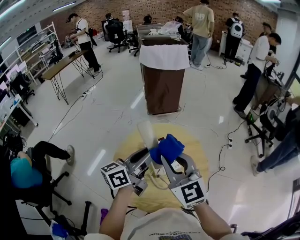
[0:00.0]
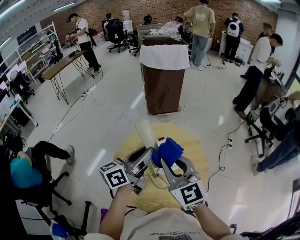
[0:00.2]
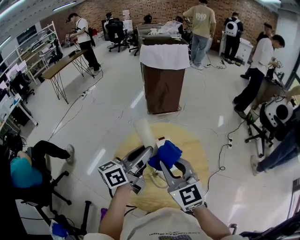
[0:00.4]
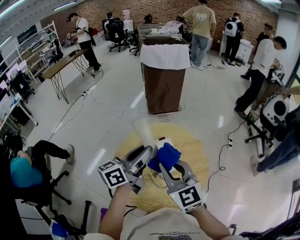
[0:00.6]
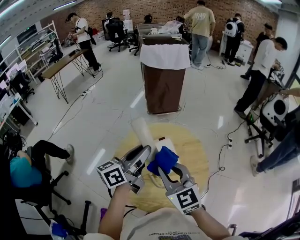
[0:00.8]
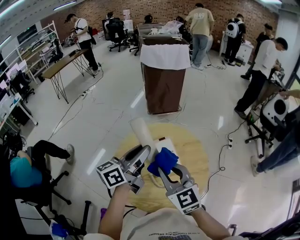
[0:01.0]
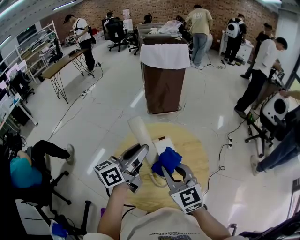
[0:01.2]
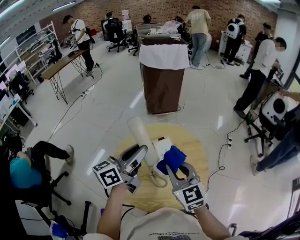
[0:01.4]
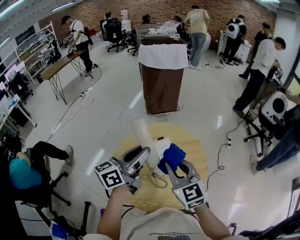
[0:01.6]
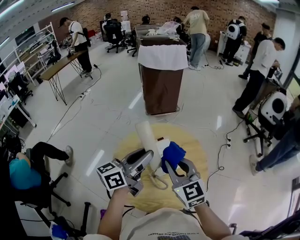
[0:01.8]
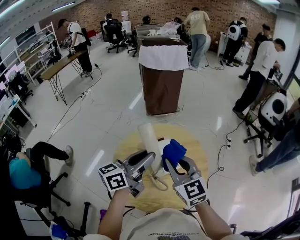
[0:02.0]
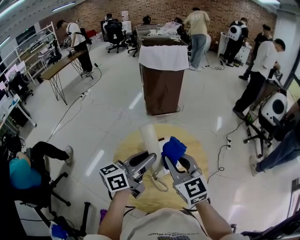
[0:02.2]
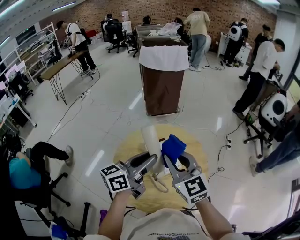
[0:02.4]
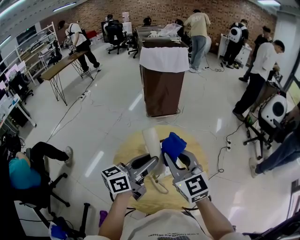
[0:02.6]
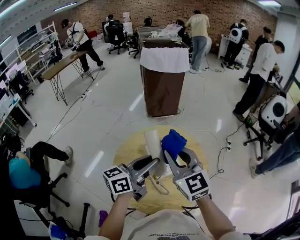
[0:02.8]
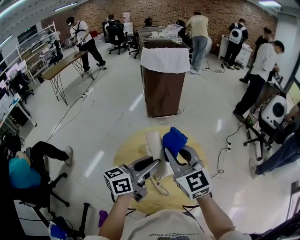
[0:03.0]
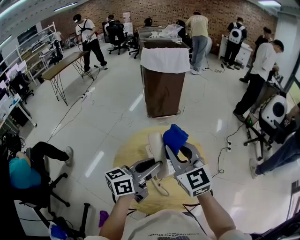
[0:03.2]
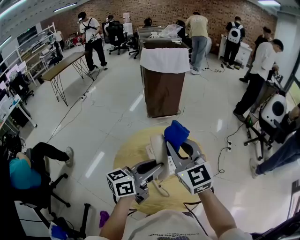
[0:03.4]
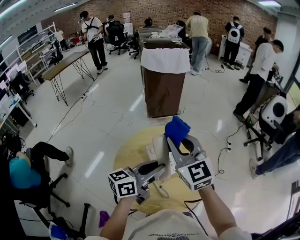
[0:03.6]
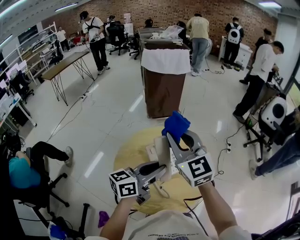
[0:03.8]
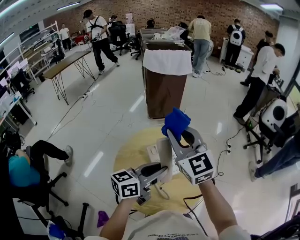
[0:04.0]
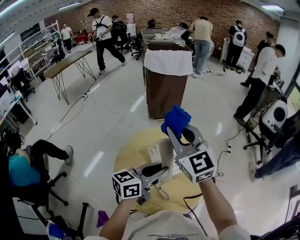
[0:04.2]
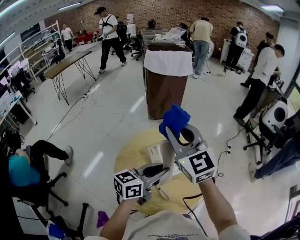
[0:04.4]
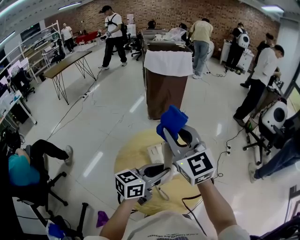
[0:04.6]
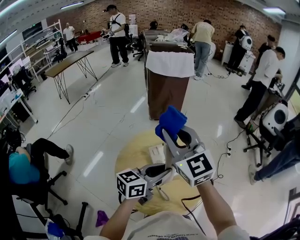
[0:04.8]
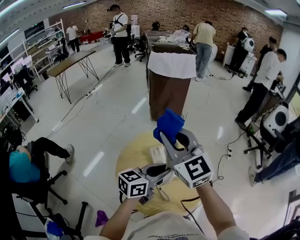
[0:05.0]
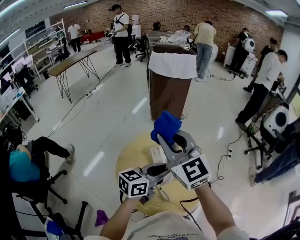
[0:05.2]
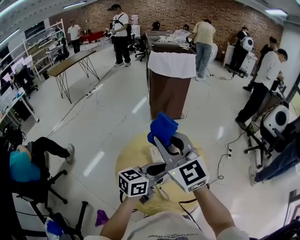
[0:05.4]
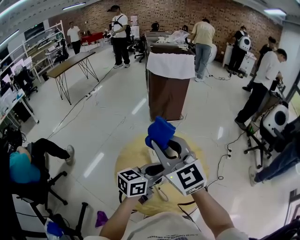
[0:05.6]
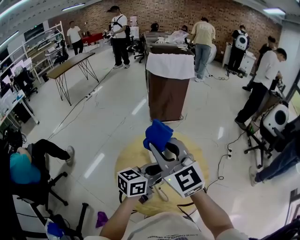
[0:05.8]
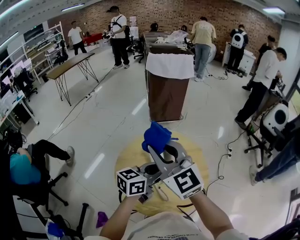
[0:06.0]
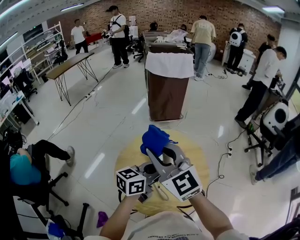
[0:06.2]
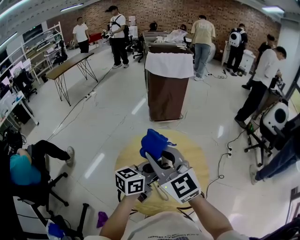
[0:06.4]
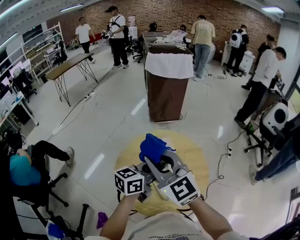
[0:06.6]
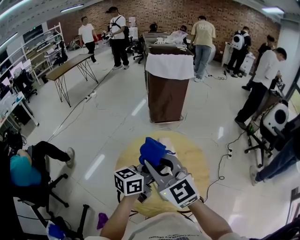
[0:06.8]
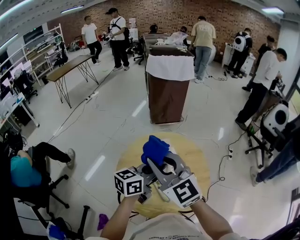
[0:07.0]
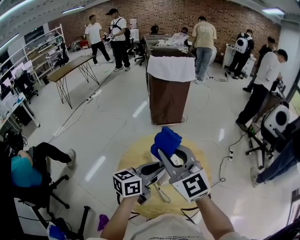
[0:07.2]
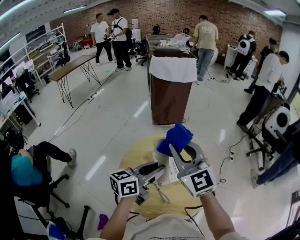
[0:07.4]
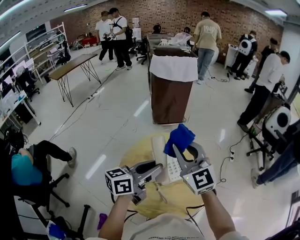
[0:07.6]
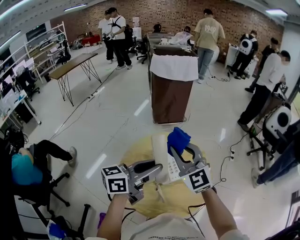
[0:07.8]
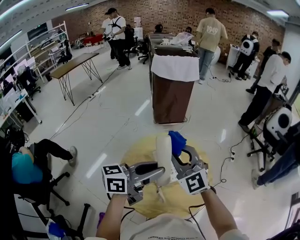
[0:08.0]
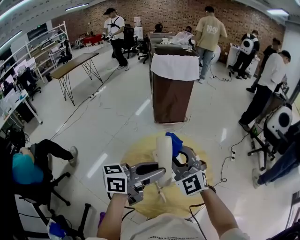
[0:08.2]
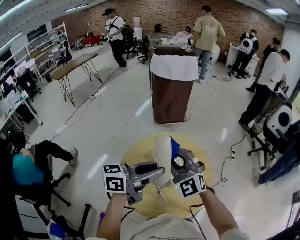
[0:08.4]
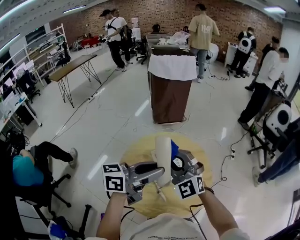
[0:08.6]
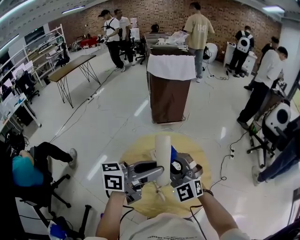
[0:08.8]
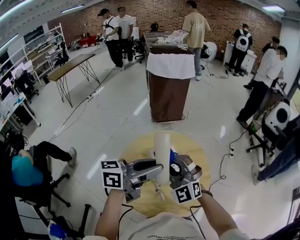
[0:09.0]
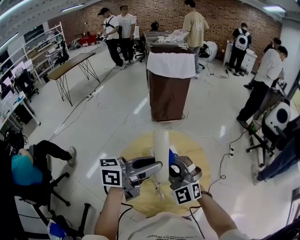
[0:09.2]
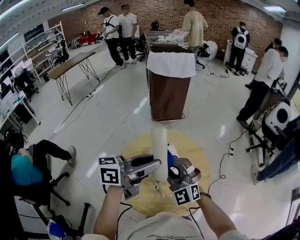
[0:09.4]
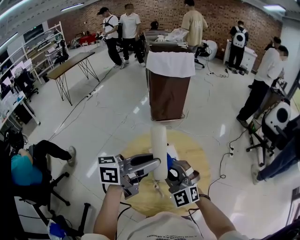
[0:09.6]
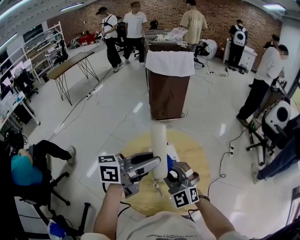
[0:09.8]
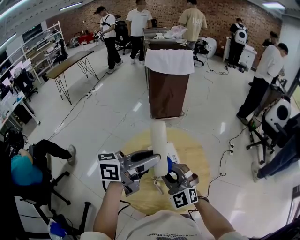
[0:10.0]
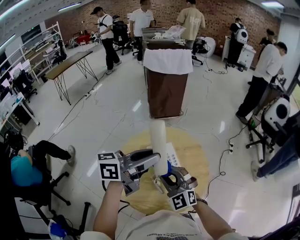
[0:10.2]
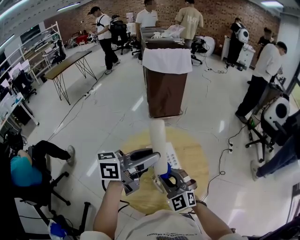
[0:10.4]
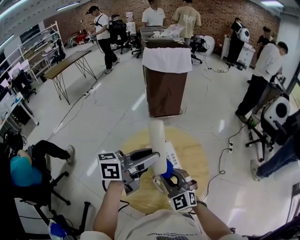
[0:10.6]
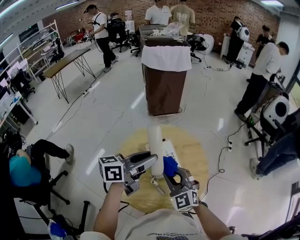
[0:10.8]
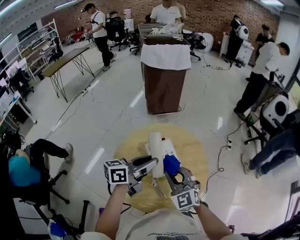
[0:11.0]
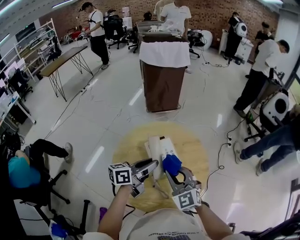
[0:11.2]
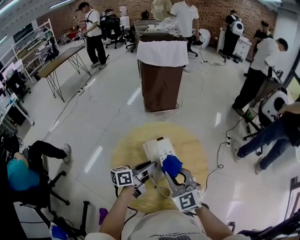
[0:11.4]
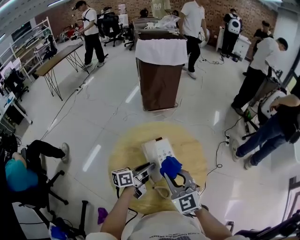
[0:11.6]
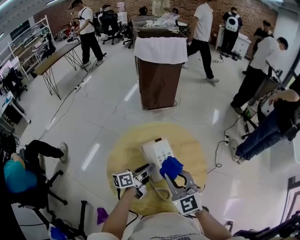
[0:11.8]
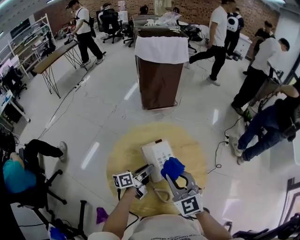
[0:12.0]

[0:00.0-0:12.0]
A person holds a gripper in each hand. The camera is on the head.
0:00.0 to 0:01.6: The right gripper heads downward, covering roughly 5 cm.
0:01.6 to 0:03.0: The right gripper is displaced upward by roughly 5 cm.
0:03.0 to 0:04.4: The right gripper shifts roughly 10 cm upward.
0:04.4 to 0:06.0: The right gripper travels backward by roughly 5 cm.
0:06.0 to 0:07.6: The right gripper goes approximately 5 cm to the right. Meanwhile the left gripper moves to the left, roughly 5 cm.
0:07.6 to 0:09.0: The right gripper moves downward and backward, approximately 10 cm, and changes its angle by about 30 degrees, while the left gripper changes place by roughly 5 cm.
0:09.0 to 0:10.4: The right gripper goes roughly 10 cm downward.
0:10.4 to 0:12.0: The right gripper shifts by roughly 5 cm, and rotates approximately 20 degrees; the left gripper goes roughly 30 cm downward, and turns by roughly 30 degrees.

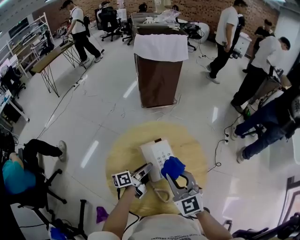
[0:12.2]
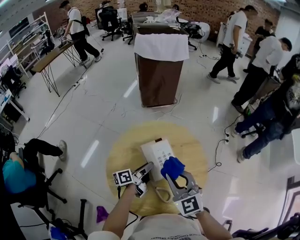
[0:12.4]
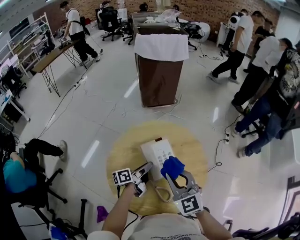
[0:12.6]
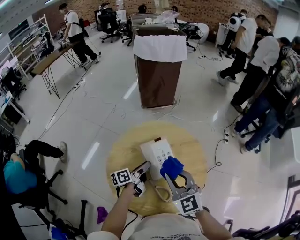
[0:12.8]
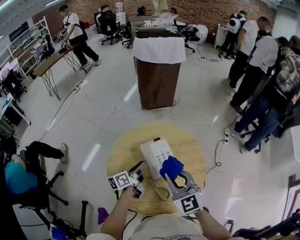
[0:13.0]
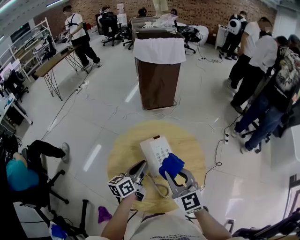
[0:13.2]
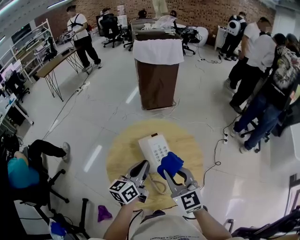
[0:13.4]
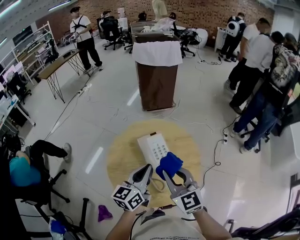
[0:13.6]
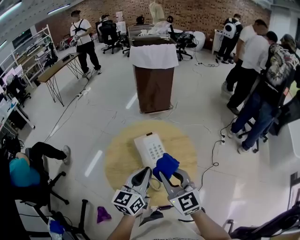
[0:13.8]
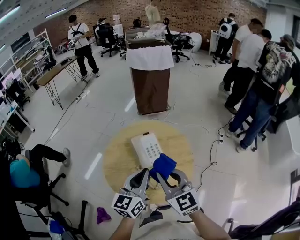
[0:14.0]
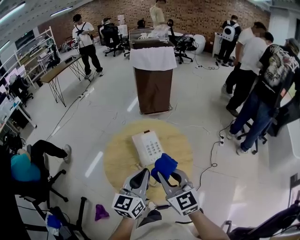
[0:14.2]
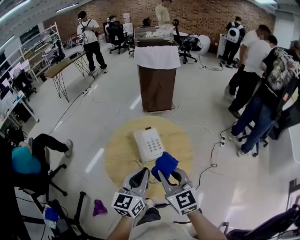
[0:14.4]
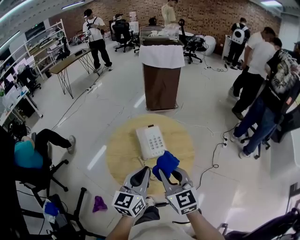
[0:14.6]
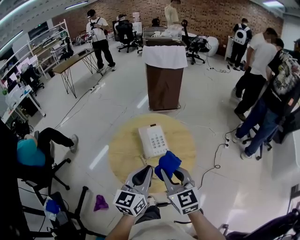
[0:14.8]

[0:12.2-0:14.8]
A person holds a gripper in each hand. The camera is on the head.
0:12.2 to 0:13.4: The right gripper moves approximately 5 cm, while the left gripper shifts some 15 cm upward and backward, and turns by approximately 40 degrees.
0:13.4 to 0:14.8: The left gripper moves backward and upward, about 15 cm, and changes its angle by about 20 degrees, while the right gripper heads backward, covering about 10 cm.

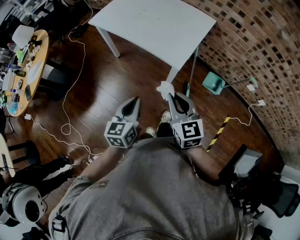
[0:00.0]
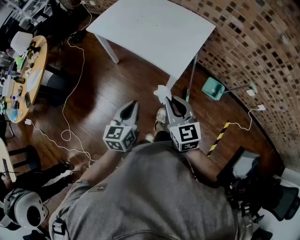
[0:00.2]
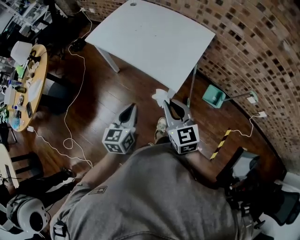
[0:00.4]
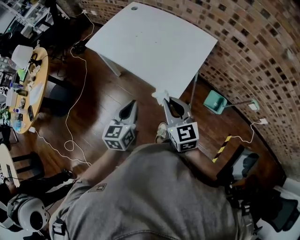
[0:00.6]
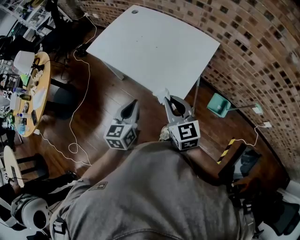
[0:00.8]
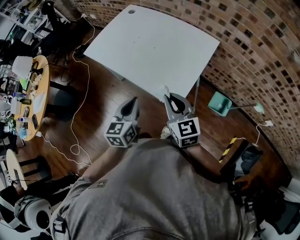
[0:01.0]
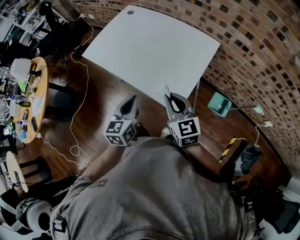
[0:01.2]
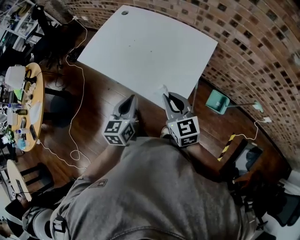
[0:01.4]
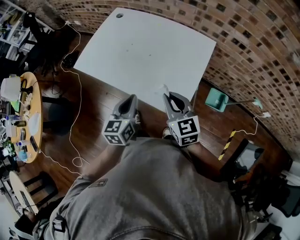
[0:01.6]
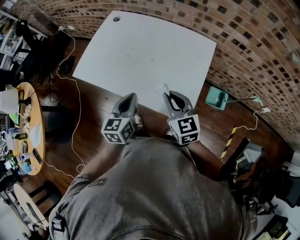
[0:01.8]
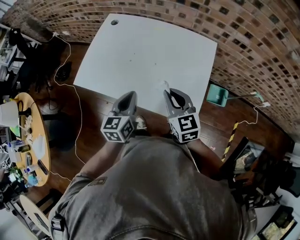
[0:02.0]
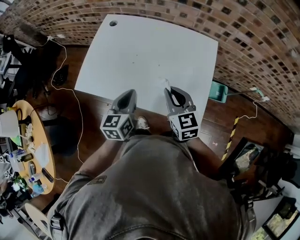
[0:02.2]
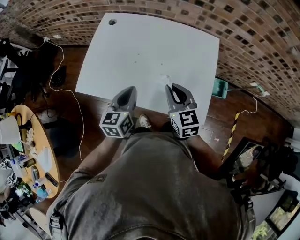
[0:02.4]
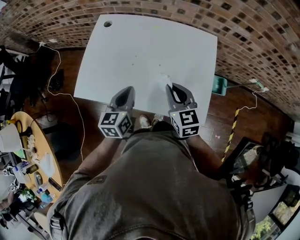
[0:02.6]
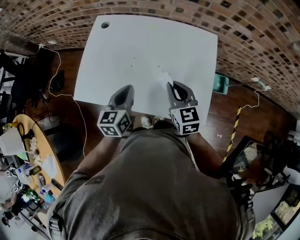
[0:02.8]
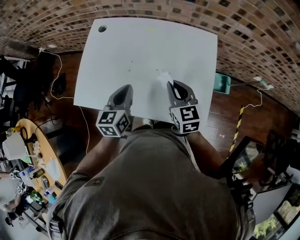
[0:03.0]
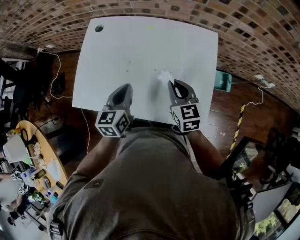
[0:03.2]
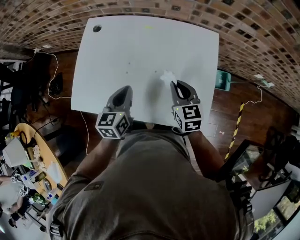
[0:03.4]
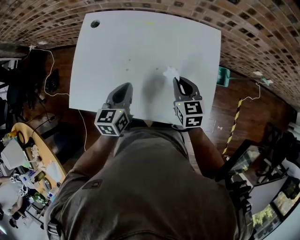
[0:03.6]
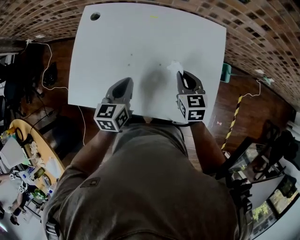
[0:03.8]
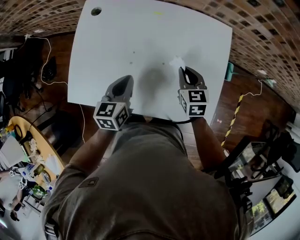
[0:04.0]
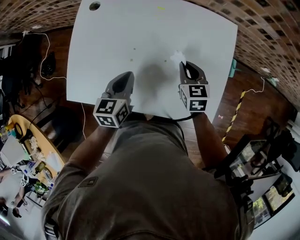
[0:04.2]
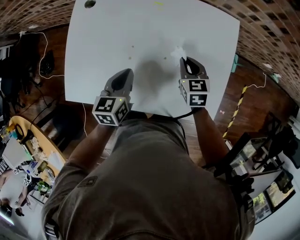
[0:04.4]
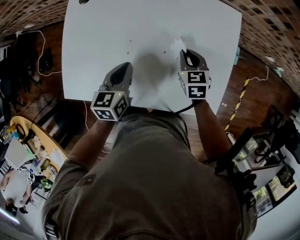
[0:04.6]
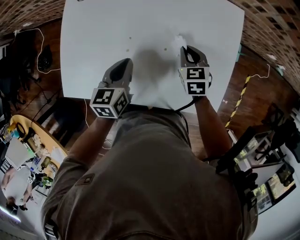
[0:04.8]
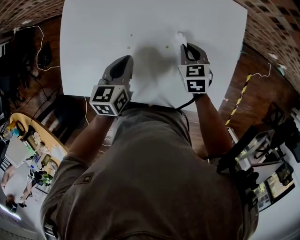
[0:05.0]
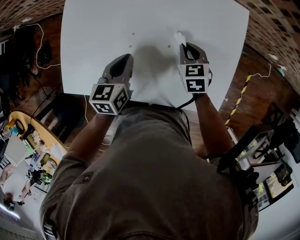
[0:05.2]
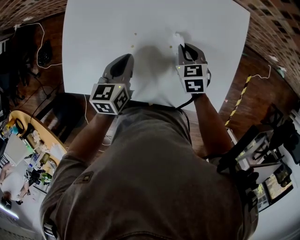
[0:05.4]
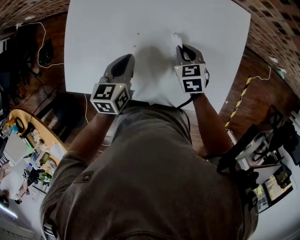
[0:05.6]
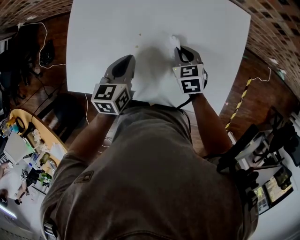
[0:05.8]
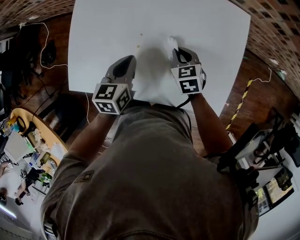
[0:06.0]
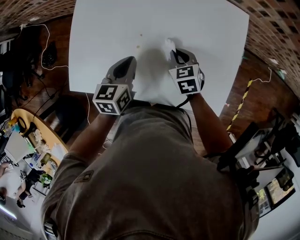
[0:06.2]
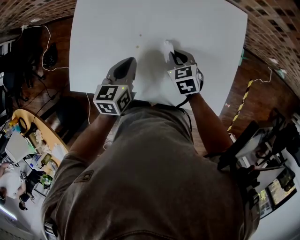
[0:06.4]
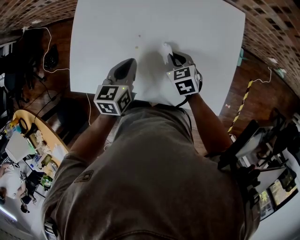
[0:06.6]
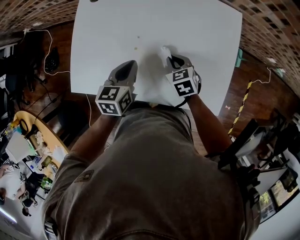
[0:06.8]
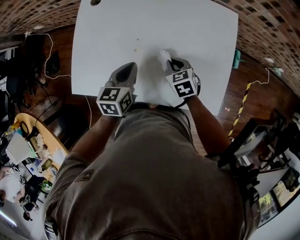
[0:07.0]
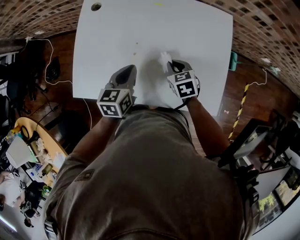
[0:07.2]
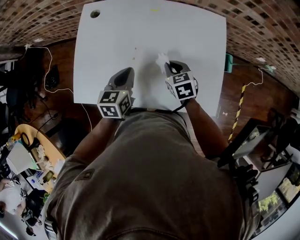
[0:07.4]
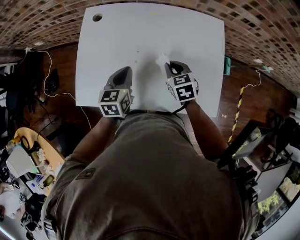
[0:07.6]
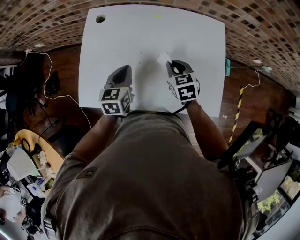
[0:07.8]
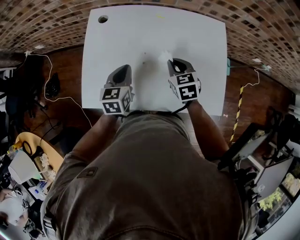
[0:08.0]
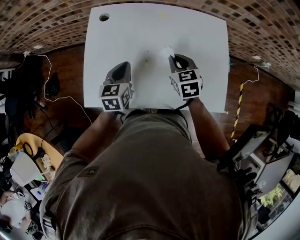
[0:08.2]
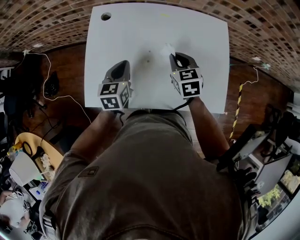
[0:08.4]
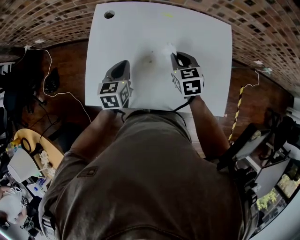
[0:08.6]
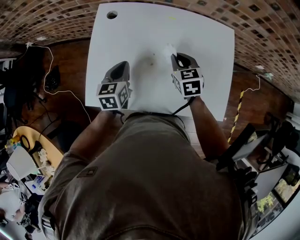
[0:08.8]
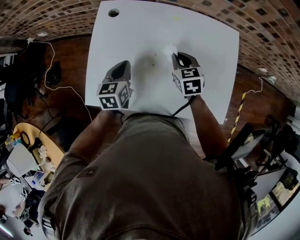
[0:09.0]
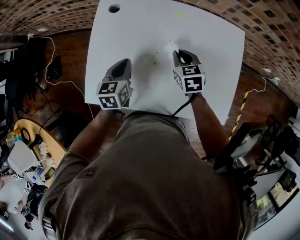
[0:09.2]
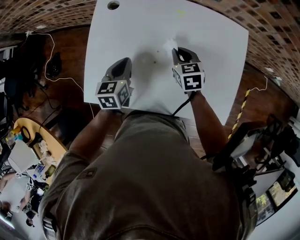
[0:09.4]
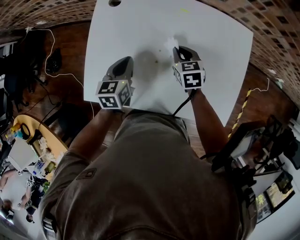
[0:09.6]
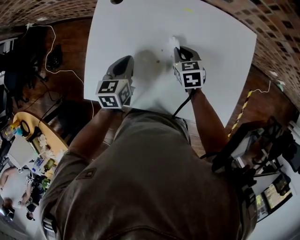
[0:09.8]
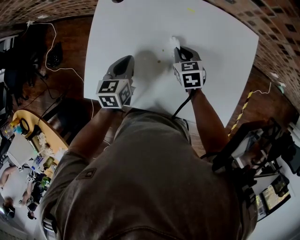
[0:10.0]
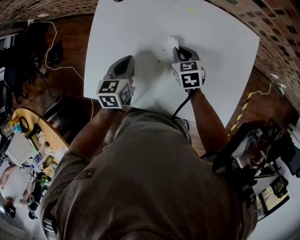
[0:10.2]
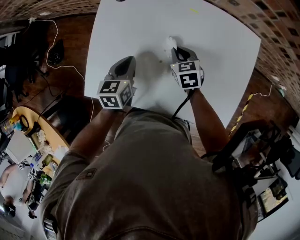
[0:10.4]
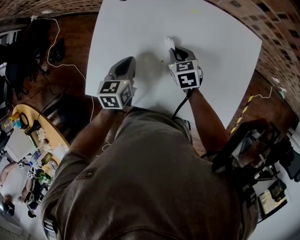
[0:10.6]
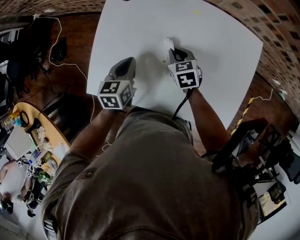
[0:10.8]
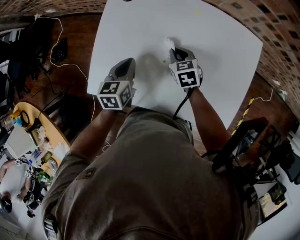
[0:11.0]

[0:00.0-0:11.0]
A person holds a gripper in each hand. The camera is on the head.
0:00.0 to 0:01.6: Both grippers move forward, roughly 30 cm.
0:01.6 to 0:03.2: The right gripper moves forward, about 15 cm, and rotates approximately 20 degrees. Meanwhile the left gripper goes about 20 cm forward and to the left.
0:03.2 to 0:04.8: The grippers both shift downward and forward by about 15 cm. The right gripper turns by roughly 20 degrees.
0:04.8 to 0:06.2: The right gripper moves to the left, approximately 5 cm.
0:06.2 to 0:07.8: The right gripper heads upward, covering some 10 cm.
0:07.8 to 0:09.4: The right gripper is displaced forward by approximately 10 cm; the left gripper shifts roughly 5 cm to the left.
0:09.4 to 0:11.0: The right gripper is displaced to the left by roughly 5 cm.
